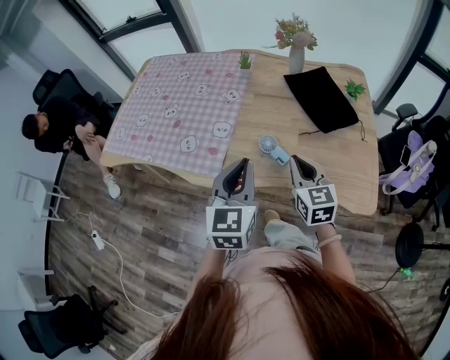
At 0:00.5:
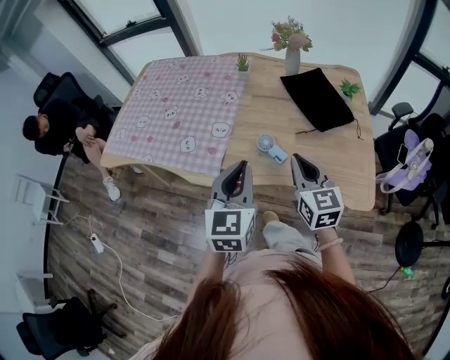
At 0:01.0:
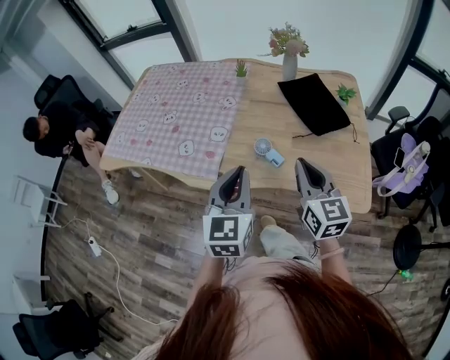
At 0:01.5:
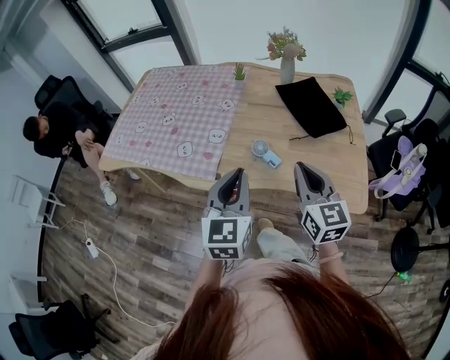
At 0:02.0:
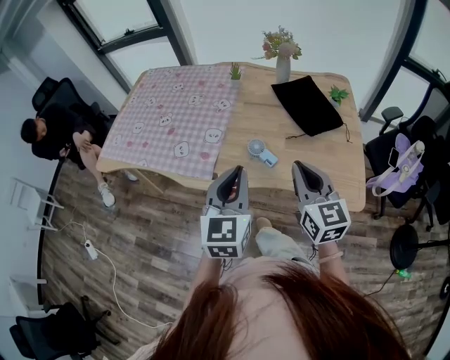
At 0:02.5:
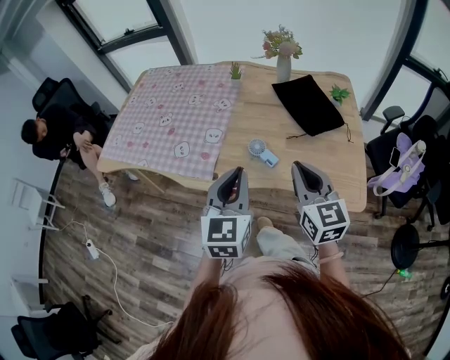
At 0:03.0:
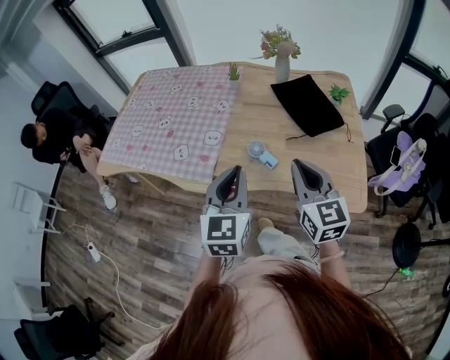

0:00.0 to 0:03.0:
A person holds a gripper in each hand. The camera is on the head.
0:00.0 to 0:01.5: The left gripper moves backward, some 5 cm; the right gripper moves upward and backward, some 10 cm.
0:01.5 to 0:03.0: The grippers stay close to where they were, moving slightly.

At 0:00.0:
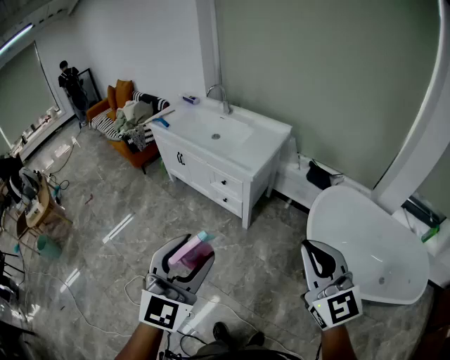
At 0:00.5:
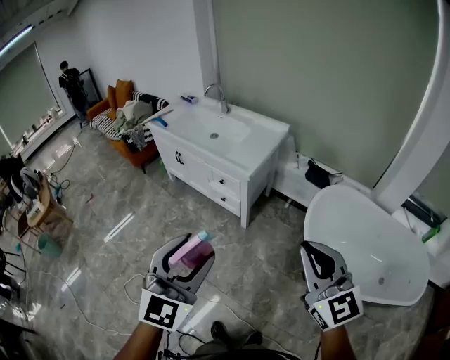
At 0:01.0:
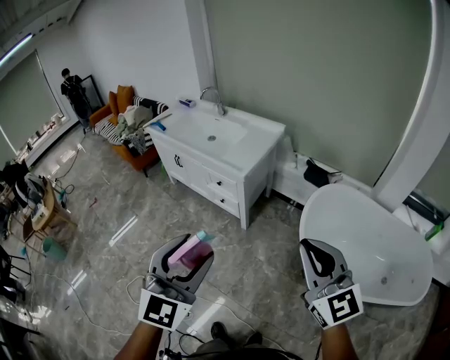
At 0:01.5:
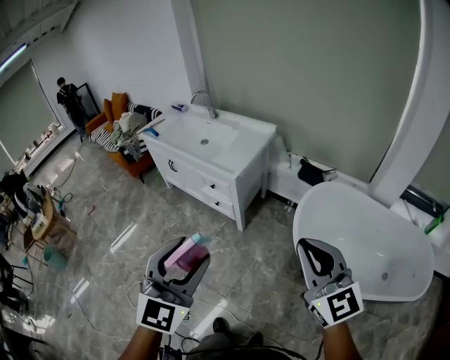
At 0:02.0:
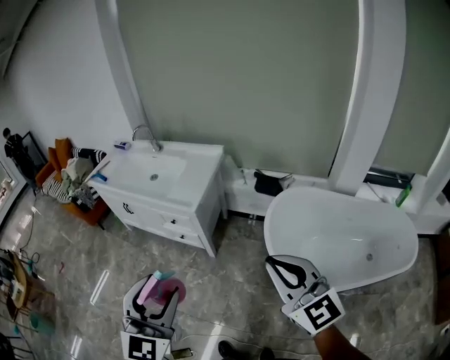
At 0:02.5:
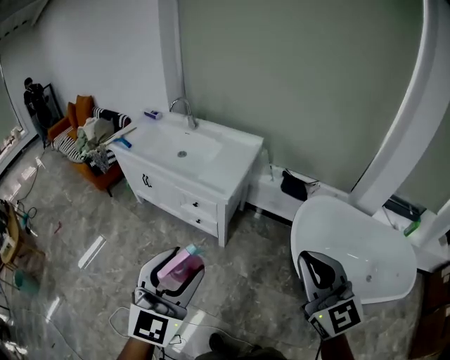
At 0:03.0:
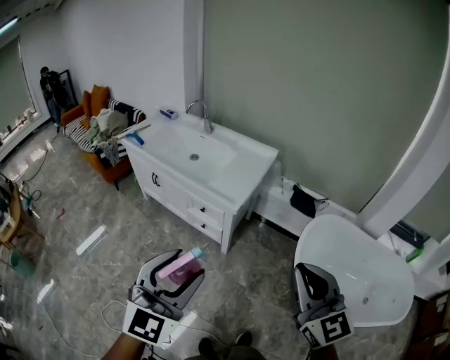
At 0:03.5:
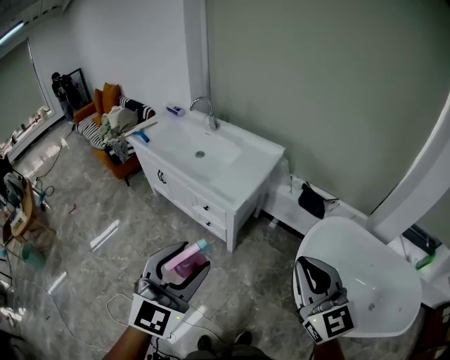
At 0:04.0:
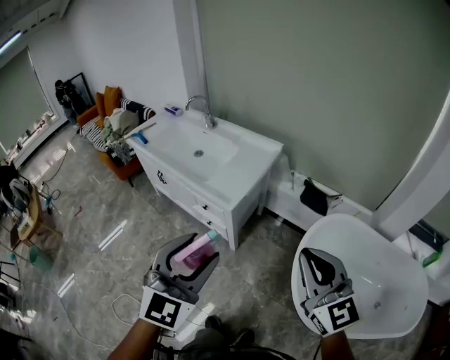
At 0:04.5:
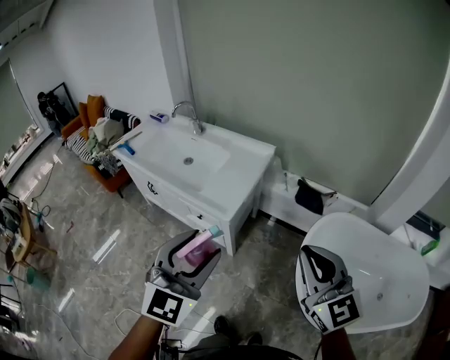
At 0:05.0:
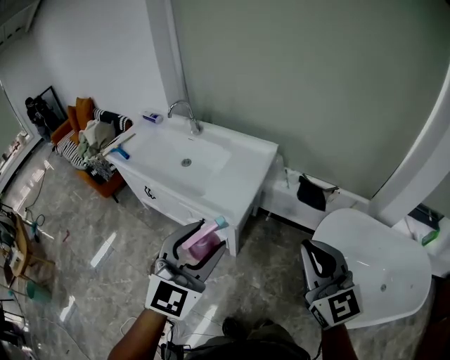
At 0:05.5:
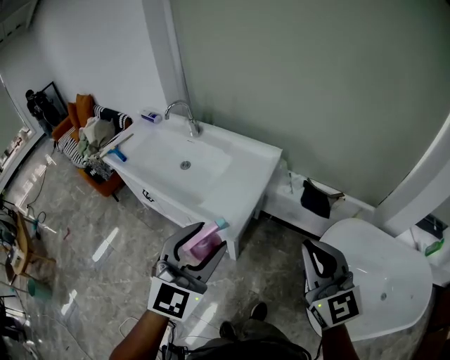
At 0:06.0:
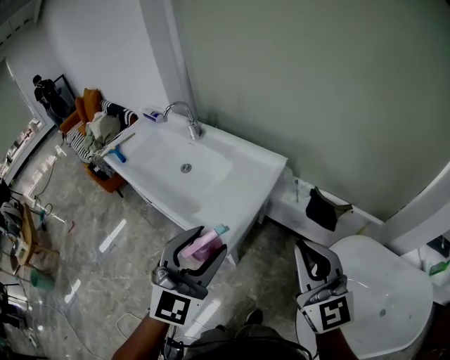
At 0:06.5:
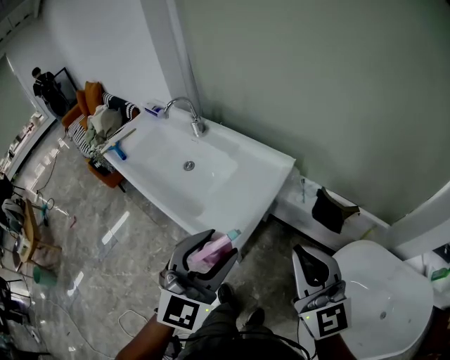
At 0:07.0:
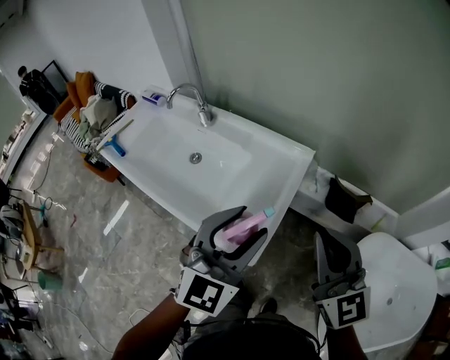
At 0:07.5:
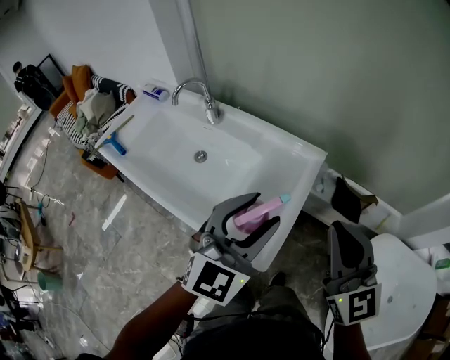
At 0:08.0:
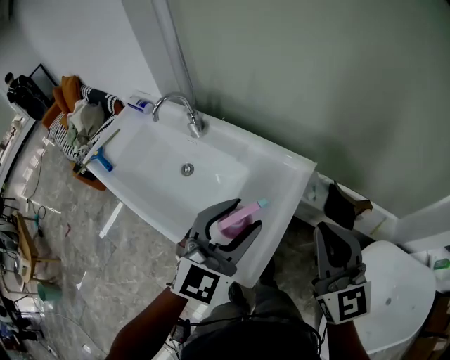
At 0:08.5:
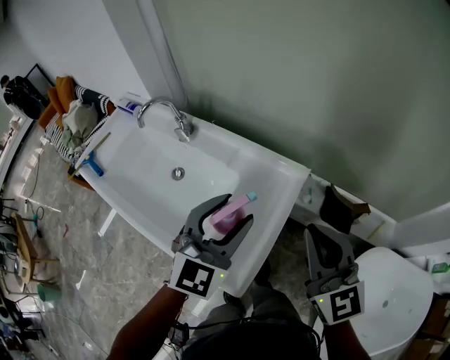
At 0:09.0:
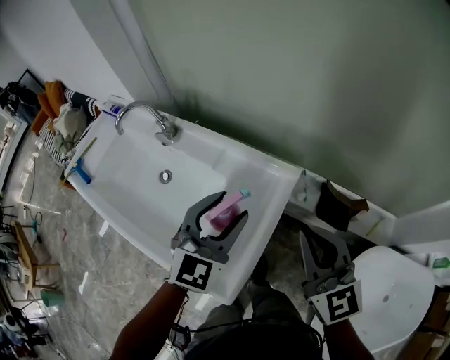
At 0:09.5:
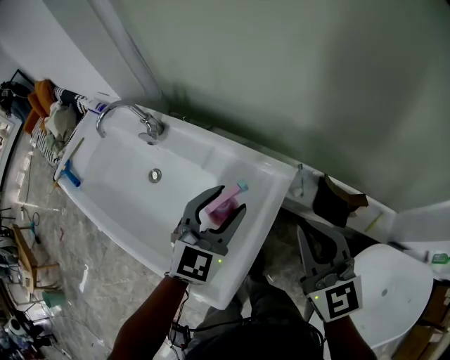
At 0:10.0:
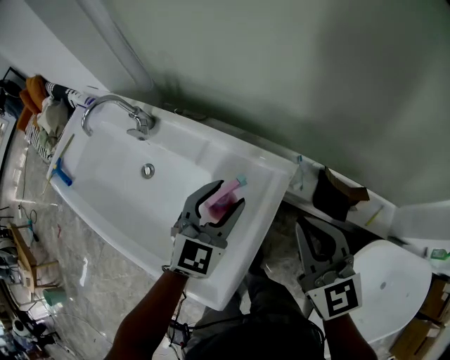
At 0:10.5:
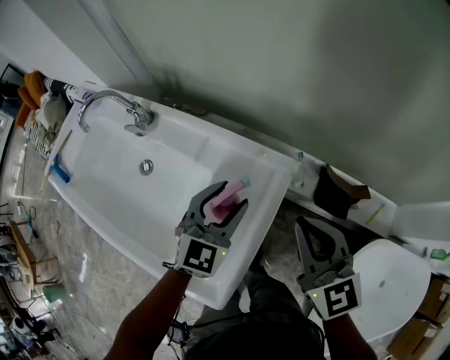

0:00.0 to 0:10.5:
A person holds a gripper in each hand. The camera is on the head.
0:00.0 to 0:02.0: The left gripper changes place by roughly 5 cm; the right gripper moves to the right, some 5 cm.
0:02.0 to 0:04.0: Both grippers move forward, roughly 15 cm.
0:04.0 to 0:06.5: The grippers both shift forward by approximately 30 cm.
0:06.5 to 0:08.5: Both grippers travel together forward, roughly 20 cm.
0:08.5 to 0:10.5: The grippers both shift downward and forward by roughly 15 cm.

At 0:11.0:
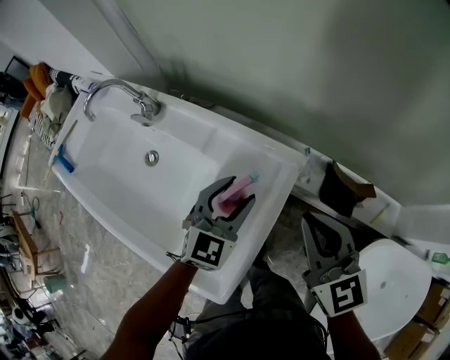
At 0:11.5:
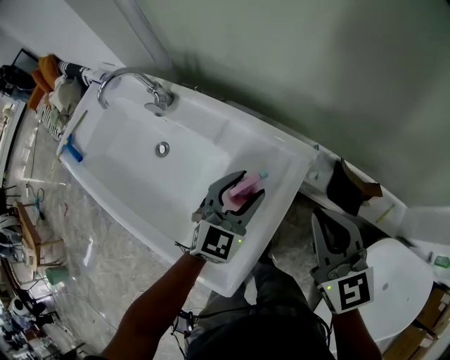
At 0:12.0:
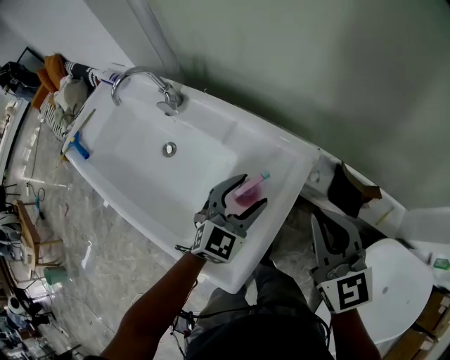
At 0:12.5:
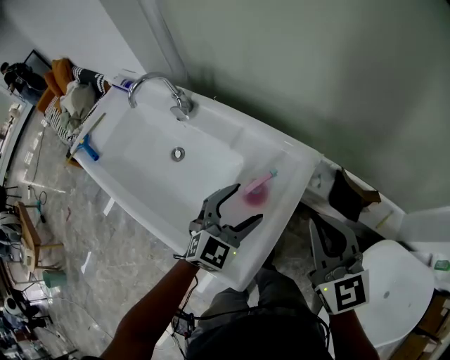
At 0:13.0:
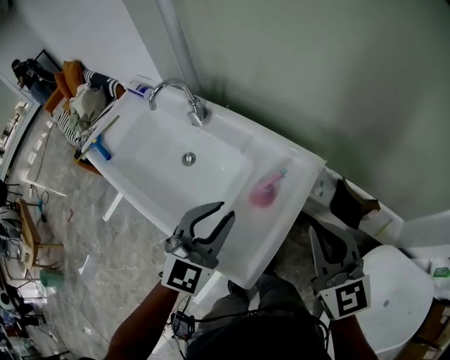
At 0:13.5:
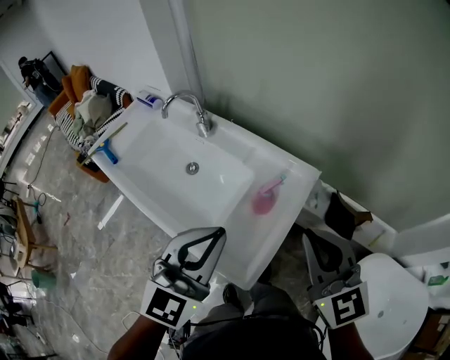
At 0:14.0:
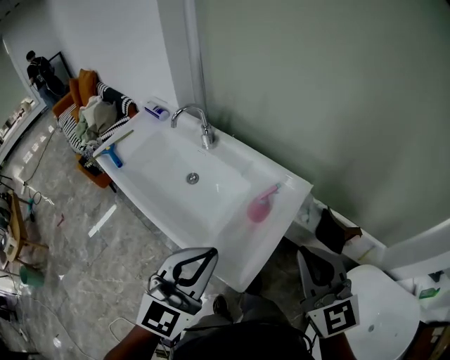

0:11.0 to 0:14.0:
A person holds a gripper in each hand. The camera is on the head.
0:11.0 to 0:12.5: Both grippers move backward, some 5 cm. The left gripper opens.
0:12.5 to 0:14.0: The left gripper moves upward, backward and to the left, approximately 30 cm, and closes its fingers. Meanwhile the right gripper heads backward, upward and to the left, covering some 15 cm.

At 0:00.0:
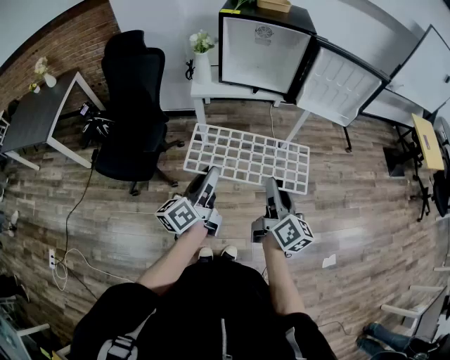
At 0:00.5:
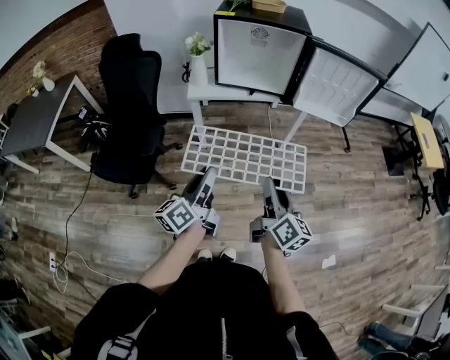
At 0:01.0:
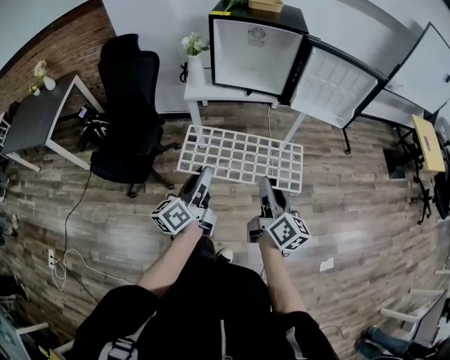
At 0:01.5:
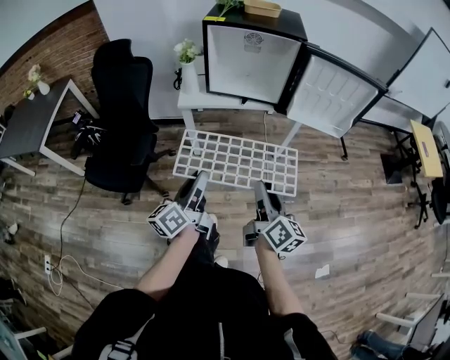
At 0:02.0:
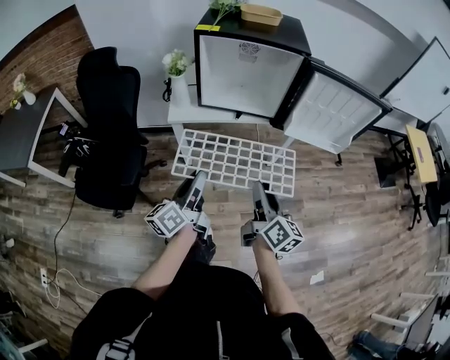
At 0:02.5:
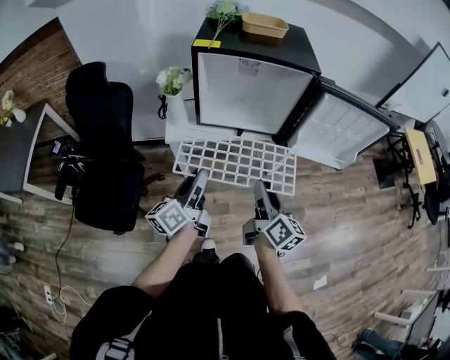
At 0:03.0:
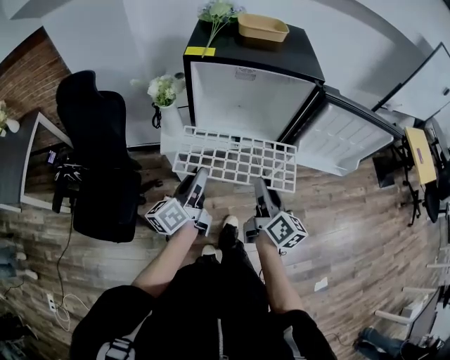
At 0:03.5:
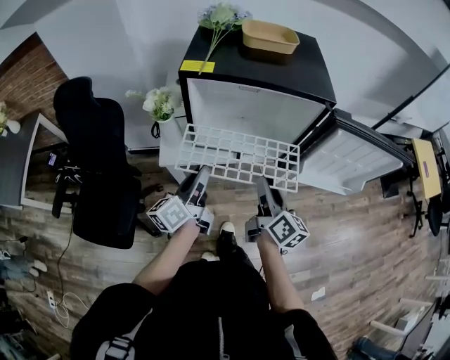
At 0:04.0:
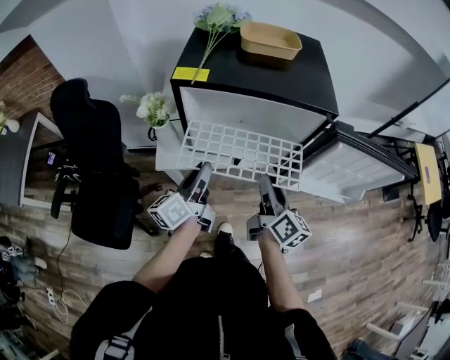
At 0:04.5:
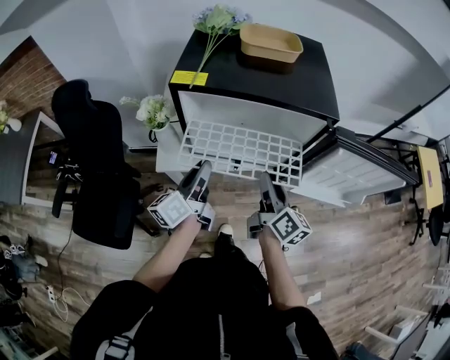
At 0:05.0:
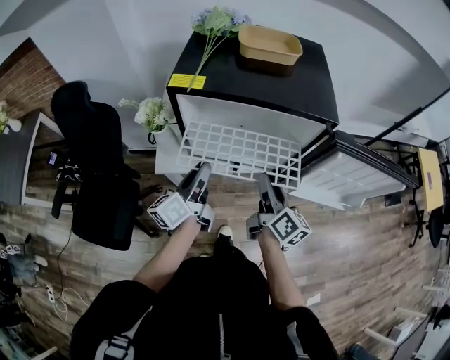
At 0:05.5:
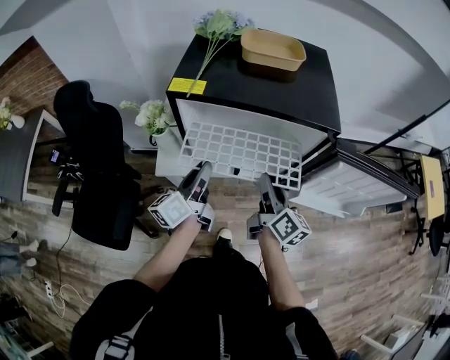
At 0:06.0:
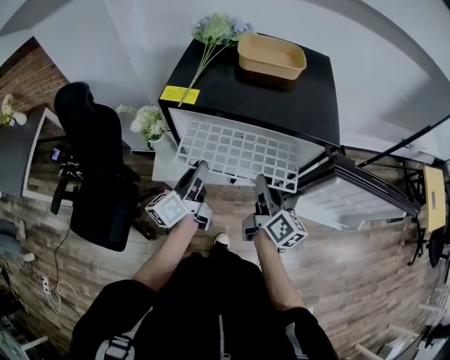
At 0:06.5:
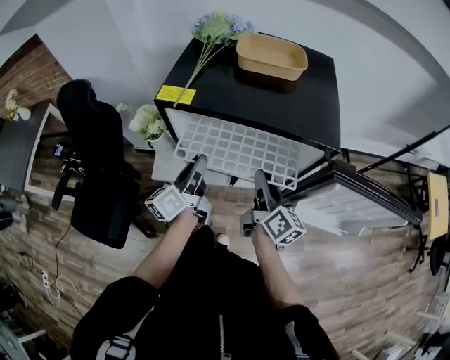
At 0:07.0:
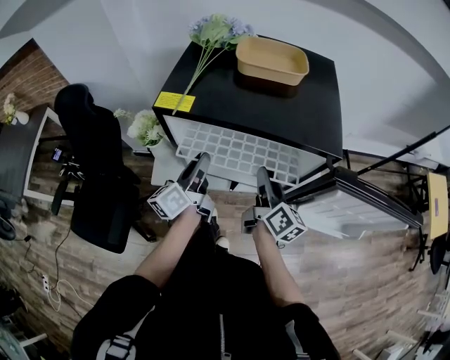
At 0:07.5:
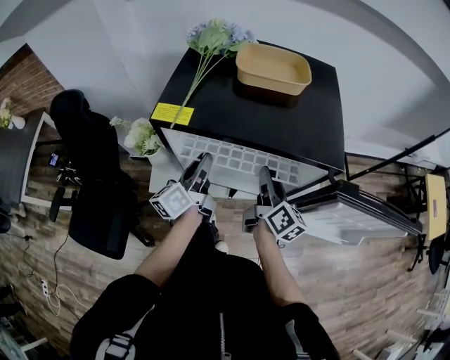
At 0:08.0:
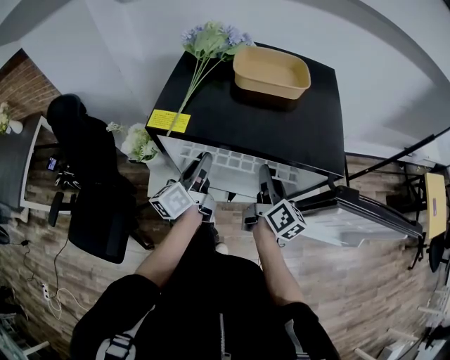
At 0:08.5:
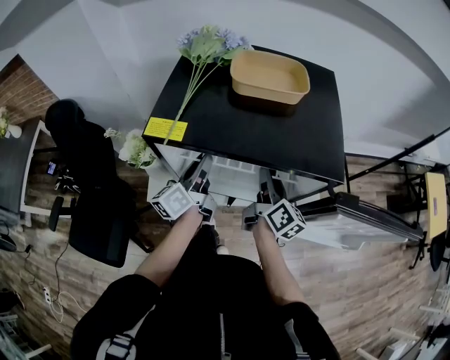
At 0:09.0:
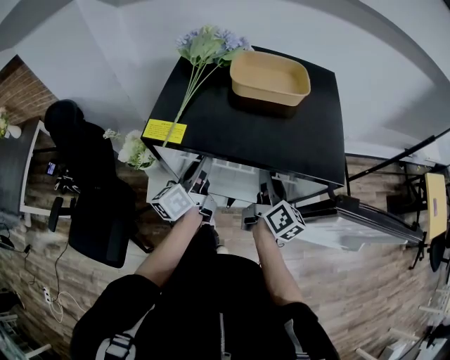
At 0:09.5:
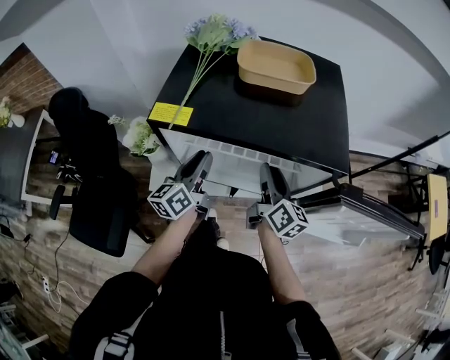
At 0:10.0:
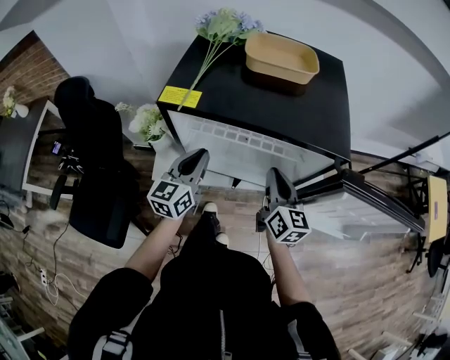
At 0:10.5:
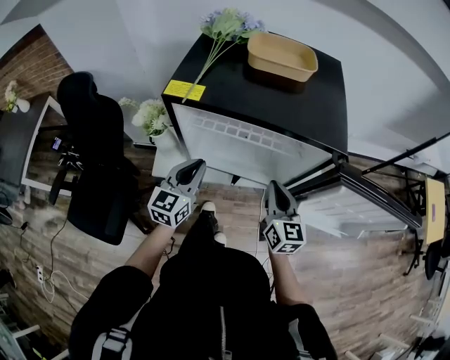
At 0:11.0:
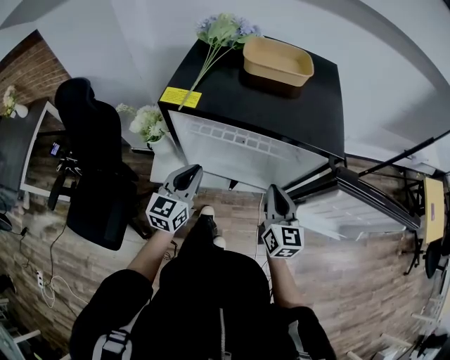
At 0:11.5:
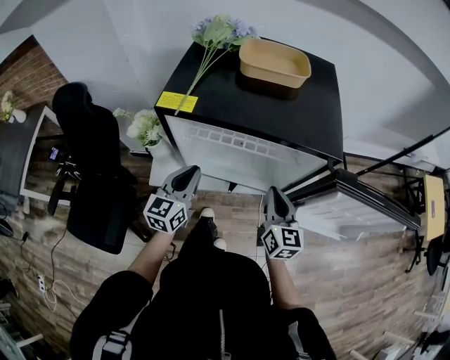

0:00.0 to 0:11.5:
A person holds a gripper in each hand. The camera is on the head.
0:00.0 to 0:02.0: The two grippers go approximately 15 cm forward.
0:02.0 to 0:04.0: The two grippers go about 30 cm forward.
0:04.0 to 0:06.0: Both grippers travel together forward, some 10 cm.
0:06.0 to 0:07.5: The grippers both shift forward by approximately 10 cm.
0:07.5 to 0:09.5: The grippers move only a little.
0:09.5 to 0:11.5: Both grippers travel together backward, roughly 10 cm. The left gripper turns by roughly 30 degrees; the right gripper rotates roughly 30 degrees, and closes up.
